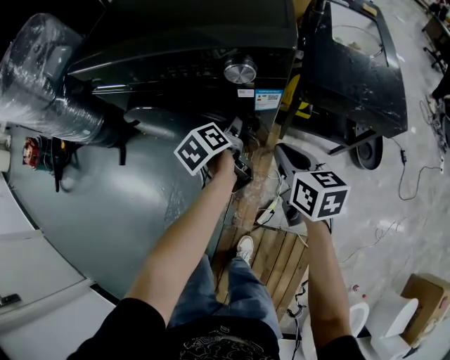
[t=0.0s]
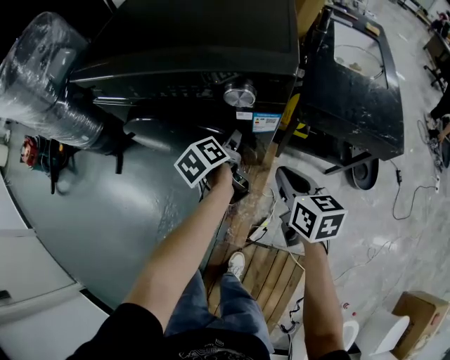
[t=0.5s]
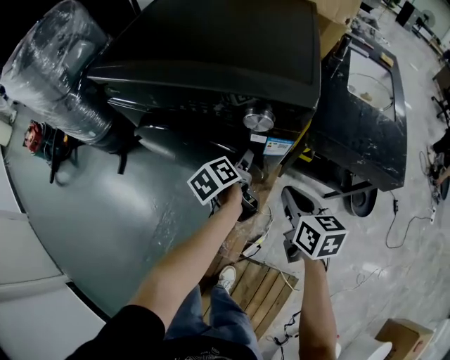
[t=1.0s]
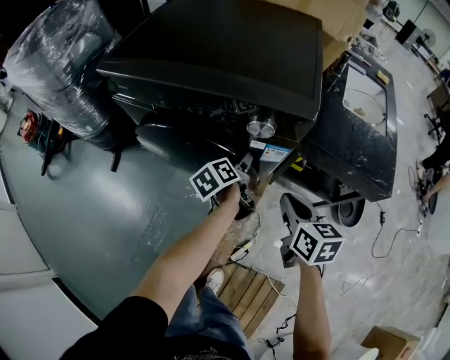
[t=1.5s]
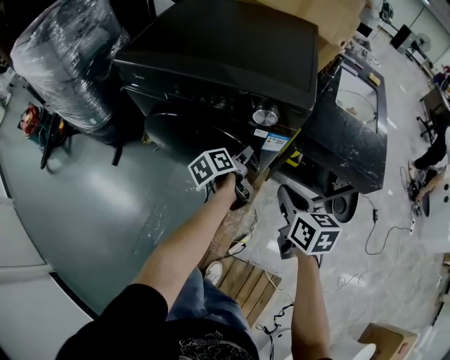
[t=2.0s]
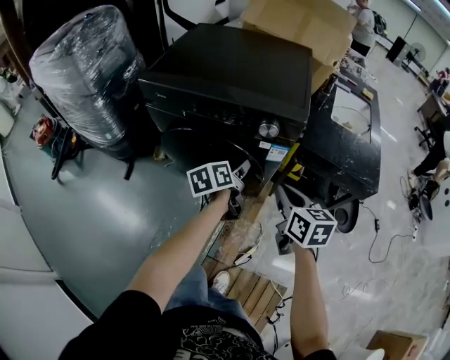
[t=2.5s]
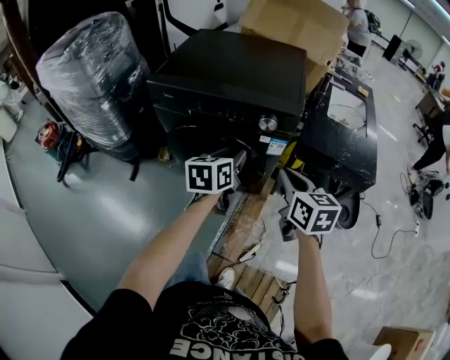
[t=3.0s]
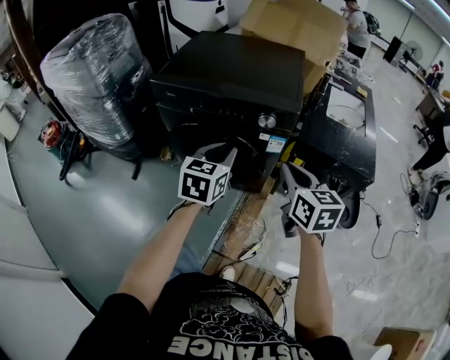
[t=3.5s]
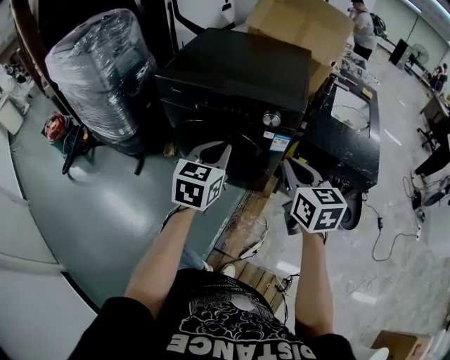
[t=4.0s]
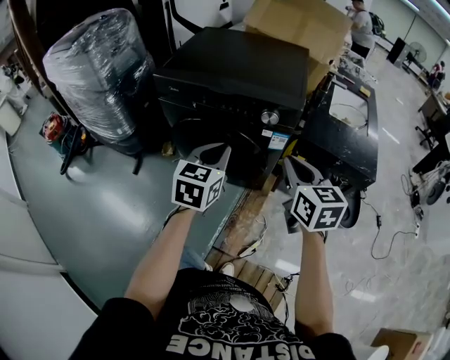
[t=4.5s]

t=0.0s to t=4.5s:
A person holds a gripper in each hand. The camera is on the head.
t=0.0s to t=2.0s: The right gripper travels upward by about 5 cm.
t=2.0s to t=4.5s: The left gripper shifts some 30 cm upward and backward, rolls clockwise, seen from behind, by approximately 70 degrees, and closes up, while the right gripper goes roughly 15 cm upward.

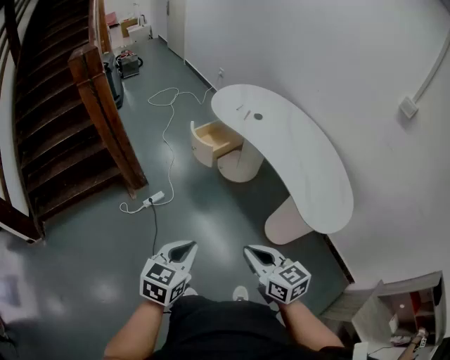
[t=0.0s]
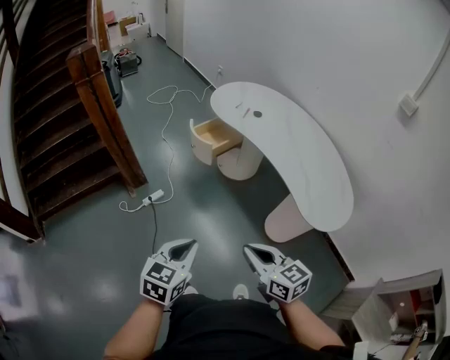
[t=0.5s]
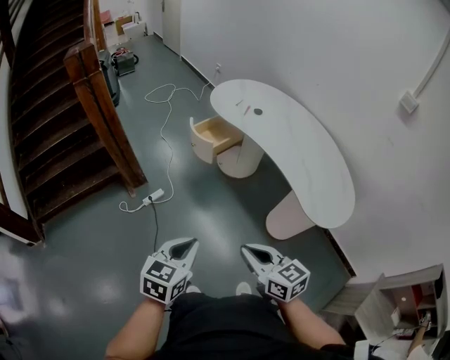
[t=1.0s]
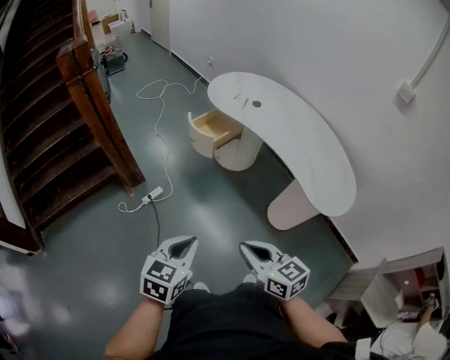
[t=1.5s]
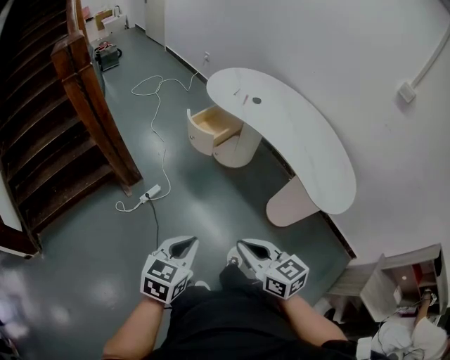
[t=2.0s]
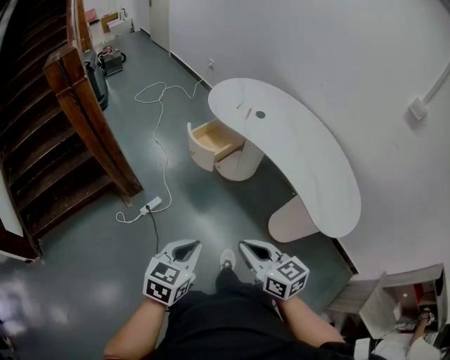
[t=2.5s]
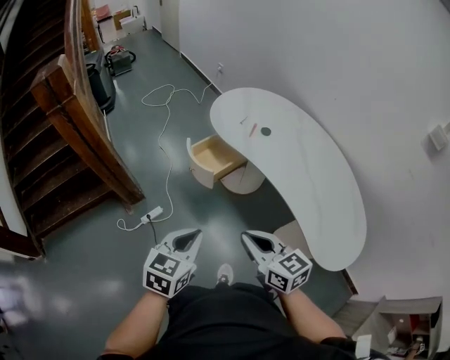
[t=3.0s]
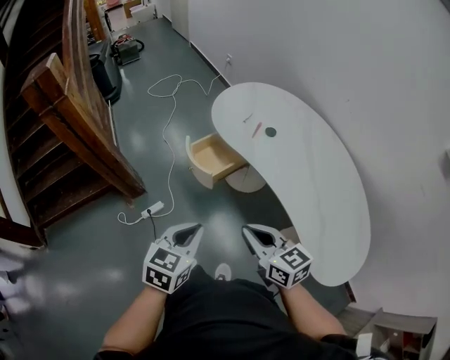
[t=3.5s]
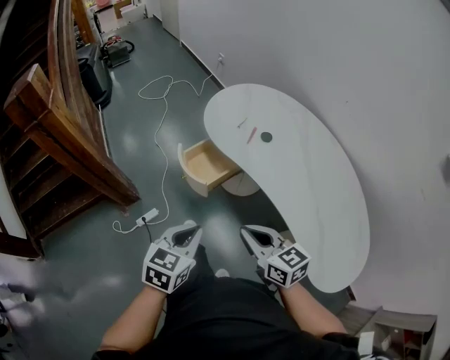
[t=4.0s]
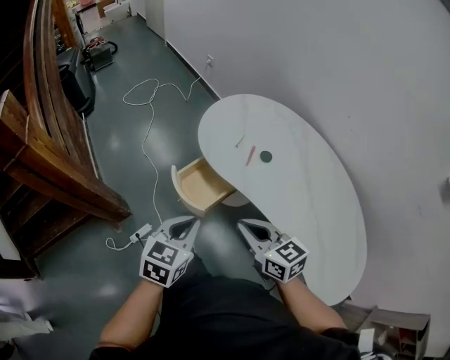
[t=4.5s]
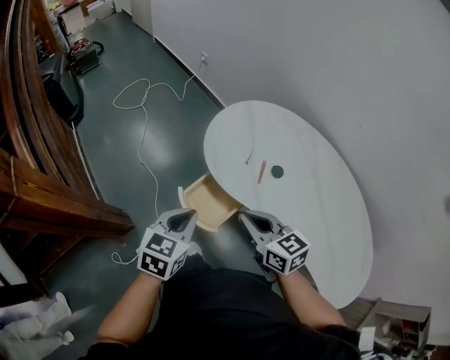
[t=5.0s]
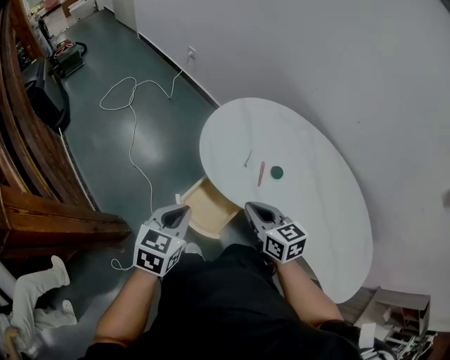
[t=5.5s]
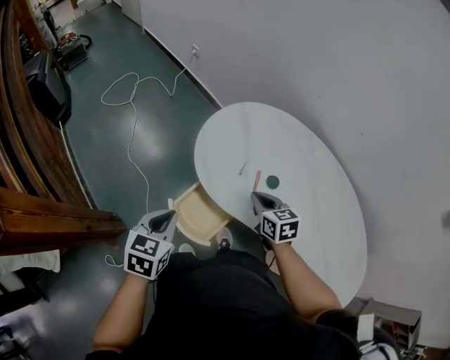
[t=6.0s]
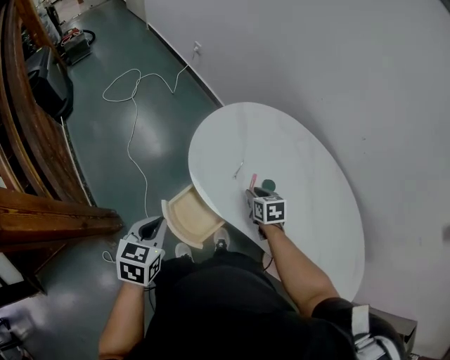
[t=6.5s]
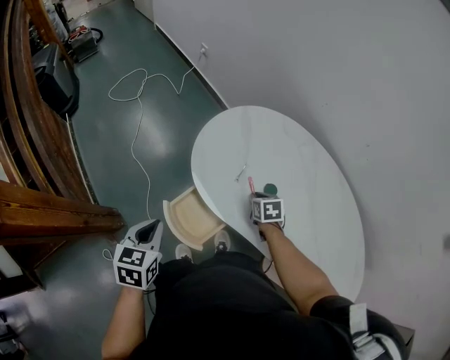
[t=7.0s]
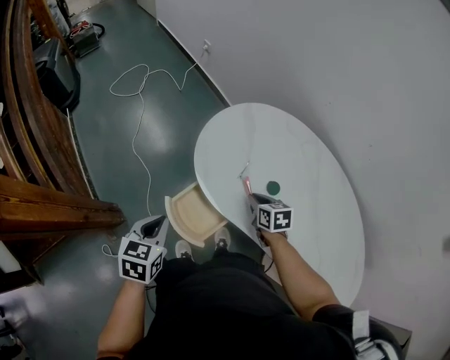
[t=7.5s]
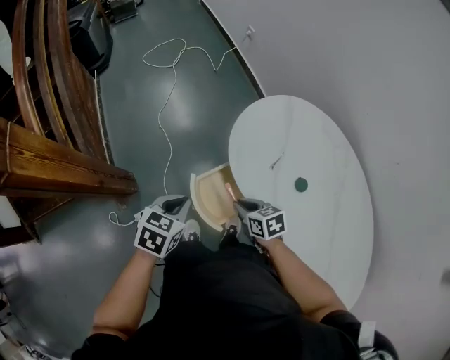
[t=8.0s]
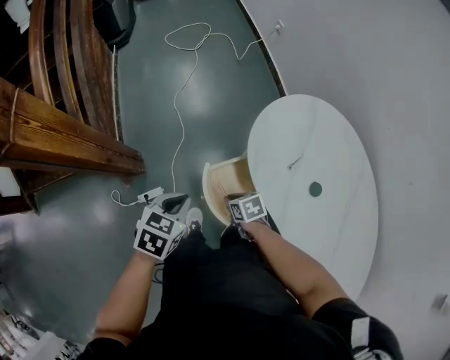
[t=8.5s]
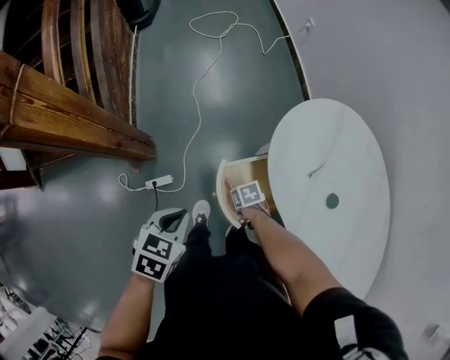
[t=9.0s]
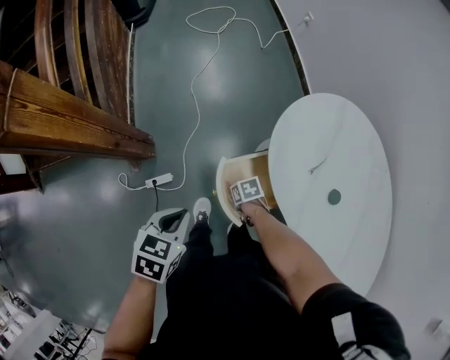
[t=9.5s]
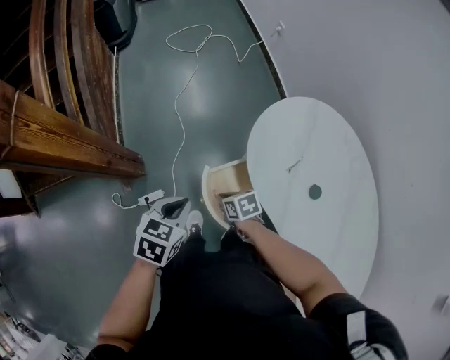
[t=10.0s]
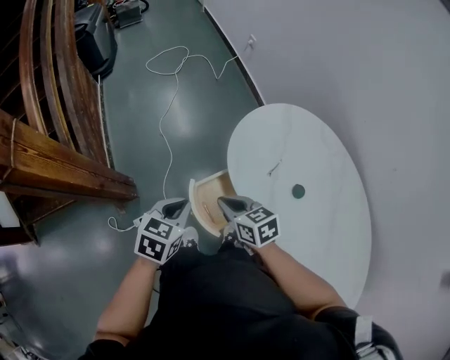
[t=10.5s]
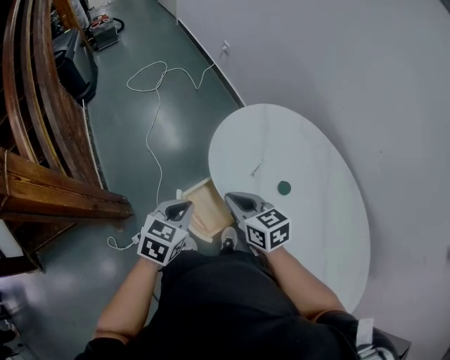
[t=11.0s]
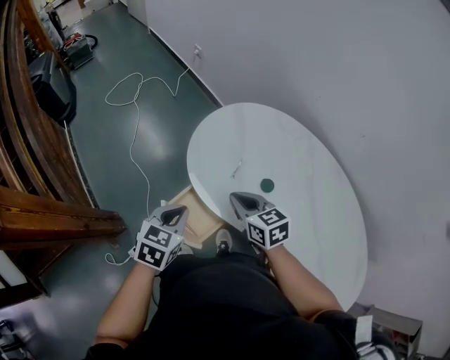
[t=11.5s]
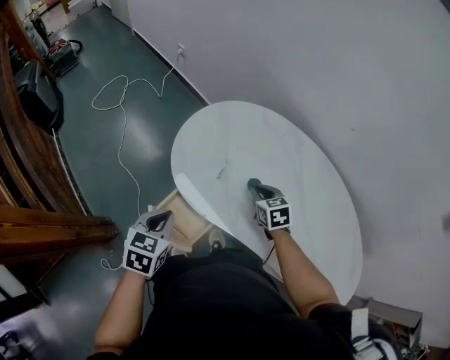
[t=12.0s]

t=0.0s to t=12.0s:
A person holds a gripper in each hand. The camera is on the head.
t=0.0s to t=2.0s: The grippers both shift to the left by about 10 cm.
t=2.0s to t=4.0s: The grippers both shift forward by roughly 35 cm.
t=4.0s to t=6.0s: The grippers both shift forward by approximately 40 cm. The right gripper turns by about 30 degrees.
t=6.0s to t=8.0s: The right gripper is displaced to the left, downward and backward by roughly 15 cm, and turns by some 30 degrees. The left gripper heads downward, covering some 5 cm.
t=10.0s to t=12.0s: The right gripper ends up about 35 cm from where it was, and rotates some 40 degrees. The left gripper moves about 15 cm, and changes its angle by approximately 20 degrees.

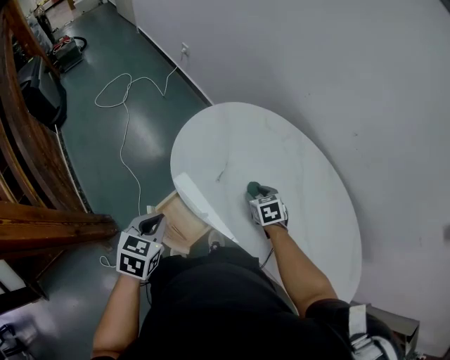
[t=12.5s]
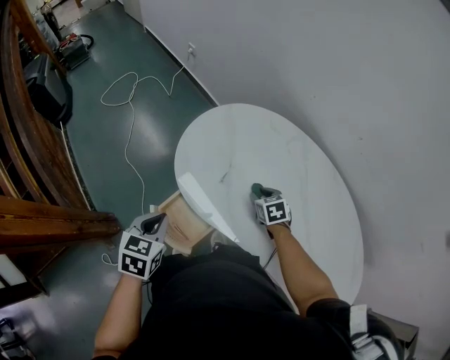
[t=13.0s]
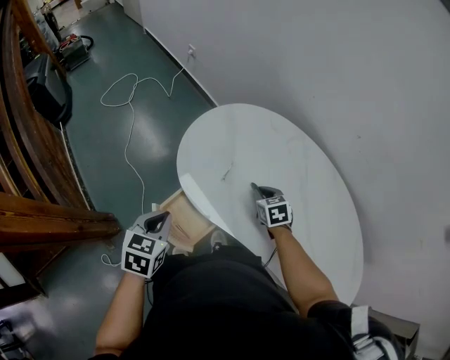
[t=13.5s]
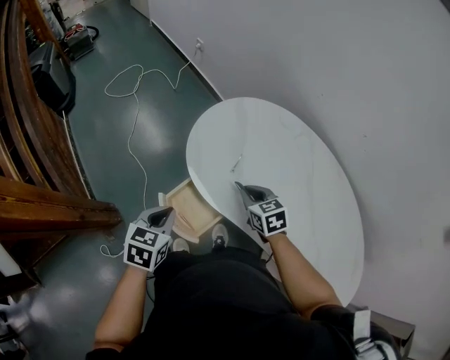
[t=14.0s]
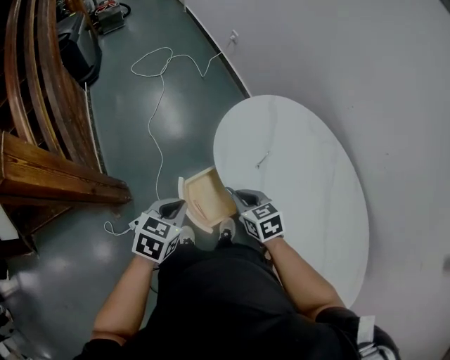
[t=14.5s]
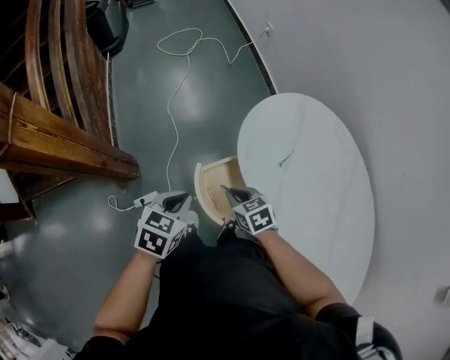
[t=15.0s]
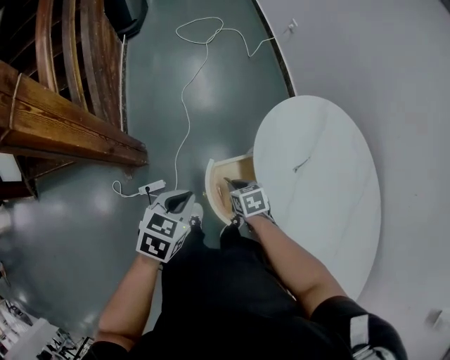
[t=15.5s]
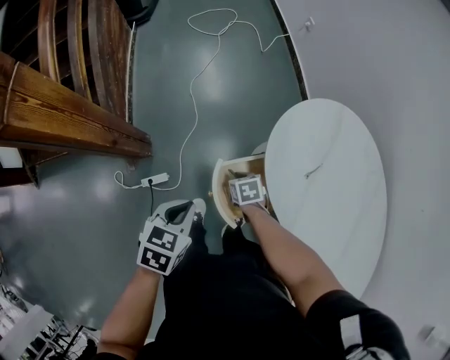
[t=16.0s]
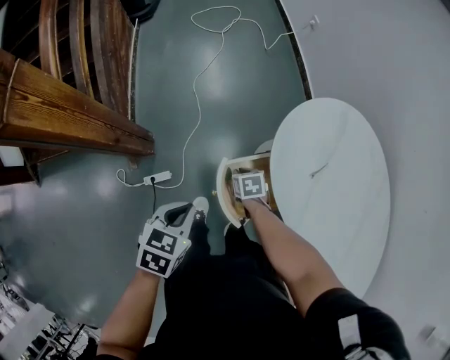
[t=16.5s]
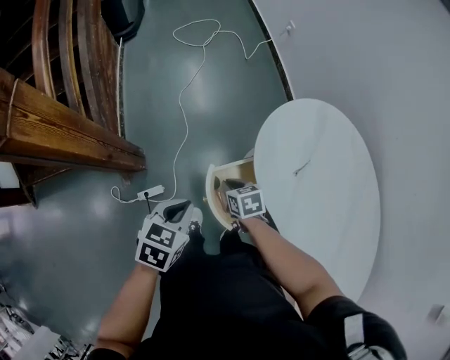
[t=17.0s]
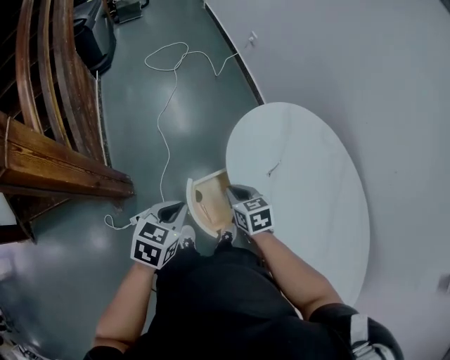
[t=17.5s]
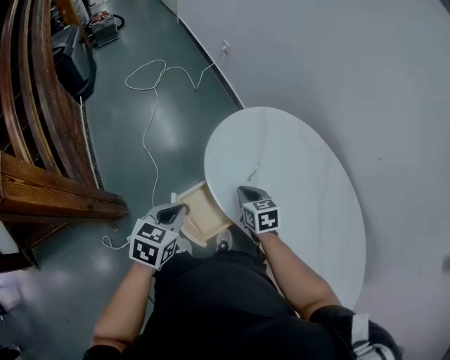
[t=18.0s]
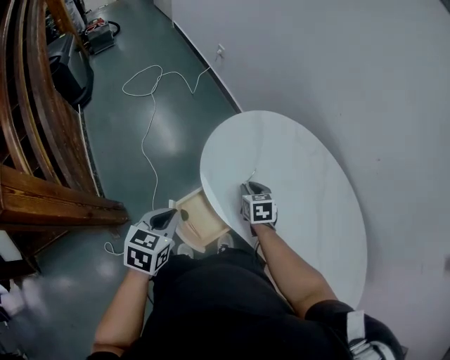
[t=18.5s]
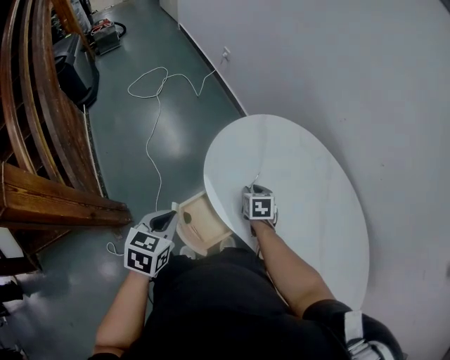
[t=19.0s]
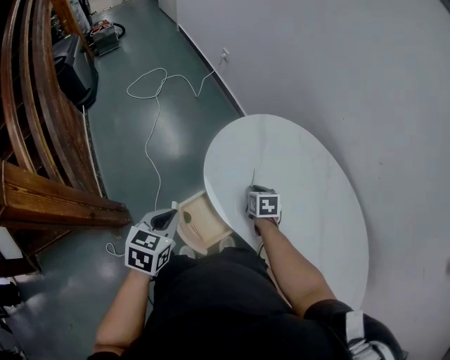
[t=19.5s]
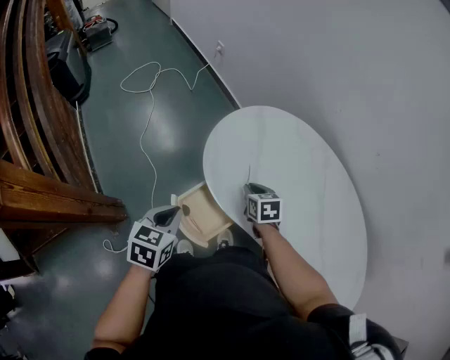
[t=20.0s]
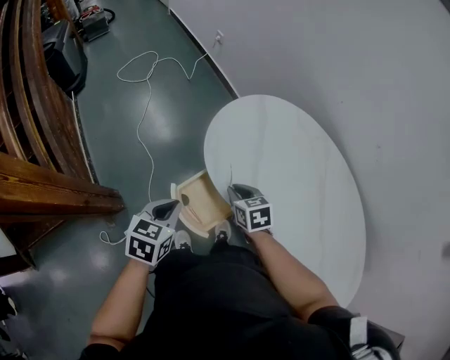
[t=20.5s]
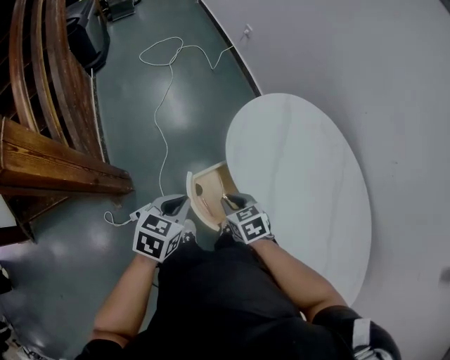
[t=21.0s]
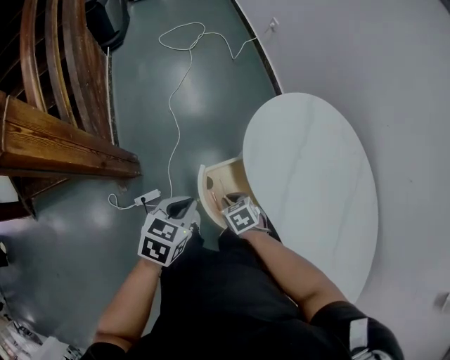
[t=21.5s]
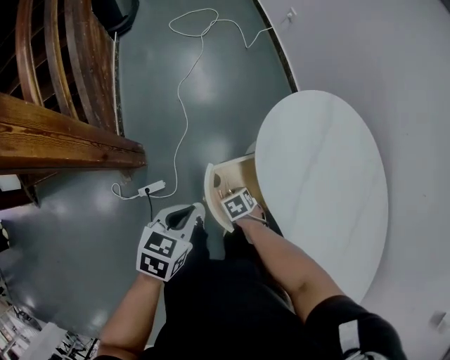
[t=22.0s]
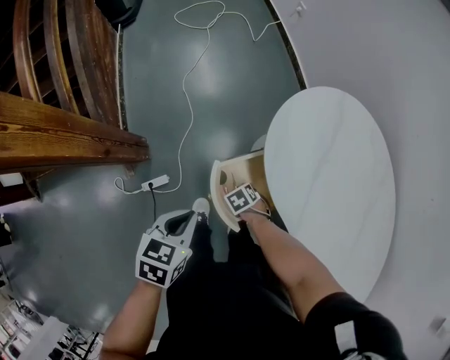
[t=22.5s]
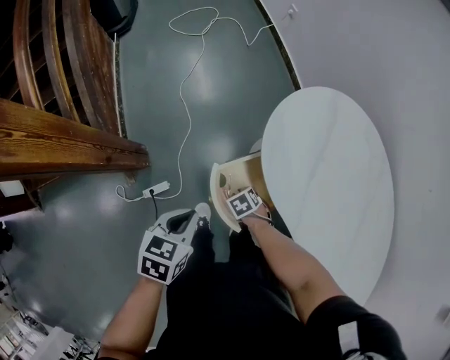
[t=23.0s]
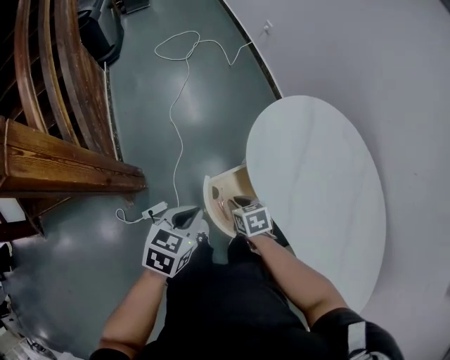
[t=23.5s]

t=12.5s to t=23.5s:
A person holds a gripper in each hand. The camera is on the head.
t=12.5s to t=14.5s: The left gripper travels backward by roughly 5 cm, while the right gripper heads to the left and backward, covering approximately 20 cm, turns by approximately 30 degrees, and closes its fingers.
t=14.5s to t=16.0s: The left gripper heads to the left, covering some 10 cm; the right gripper shifts approximately 25 cm downward and to the left, and rotates about 20 degrees.
t=16.0s to t=18.0s: The left gripper heads to the right, upward and forward, covering approximately 15 cm. The right gripper shifts approximately 25 cm upward and to the right, and turns by about 30 degrees.
t=20.0s to t=21.5s: The right gripper moves roughly 25 cm, and rotates approximately 40 degrees; the left gripper changes place by about 10 cm.
t=21.5s to t=23.5s: The right gripper reaches roughly 15 cm downward, then returns.
